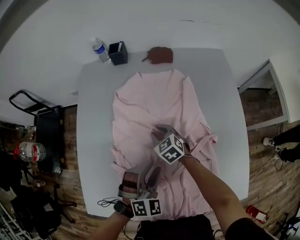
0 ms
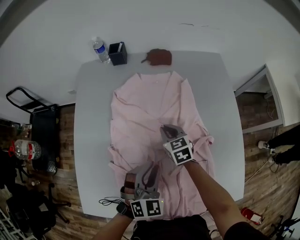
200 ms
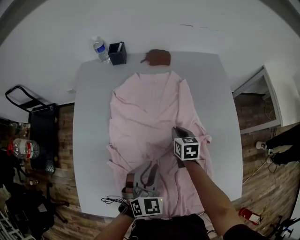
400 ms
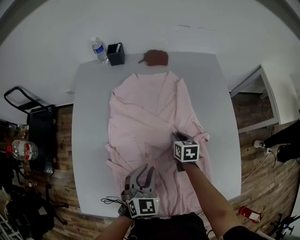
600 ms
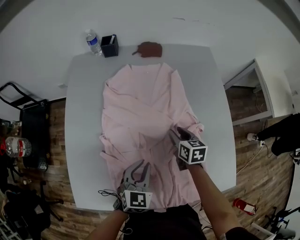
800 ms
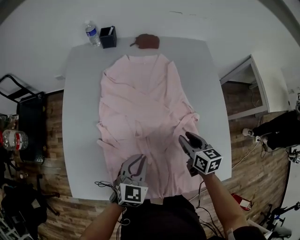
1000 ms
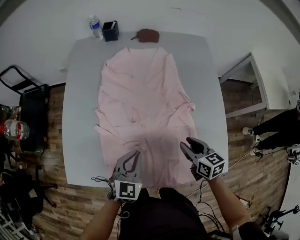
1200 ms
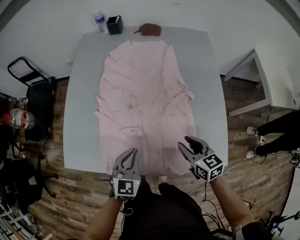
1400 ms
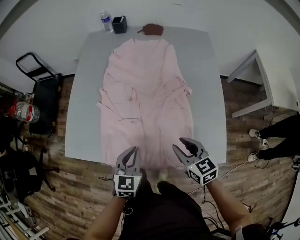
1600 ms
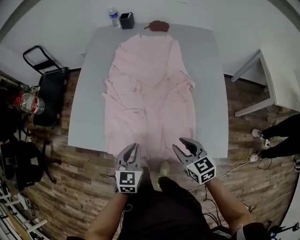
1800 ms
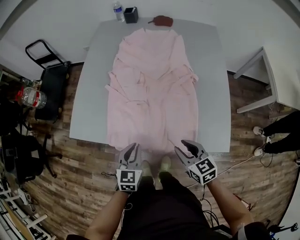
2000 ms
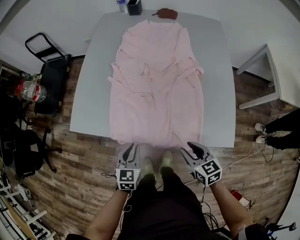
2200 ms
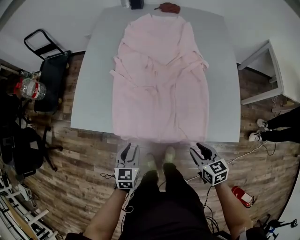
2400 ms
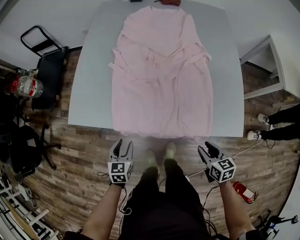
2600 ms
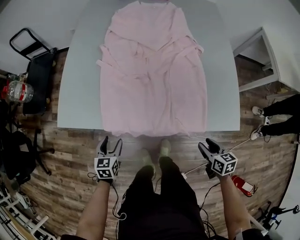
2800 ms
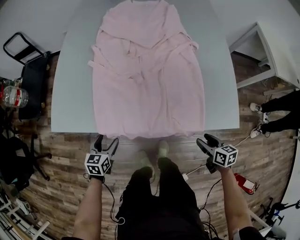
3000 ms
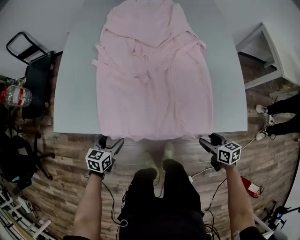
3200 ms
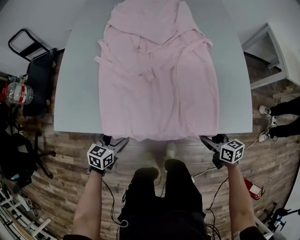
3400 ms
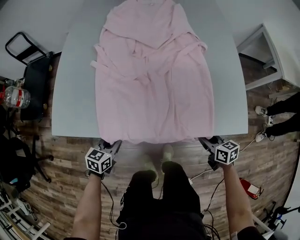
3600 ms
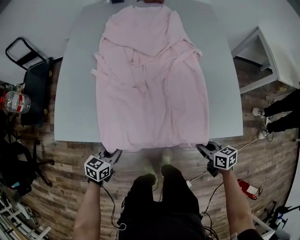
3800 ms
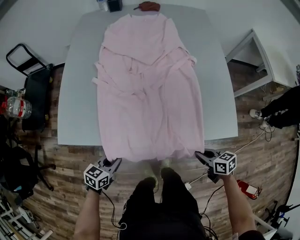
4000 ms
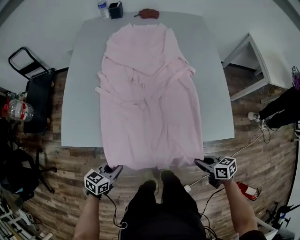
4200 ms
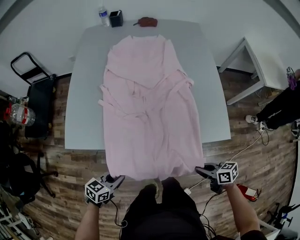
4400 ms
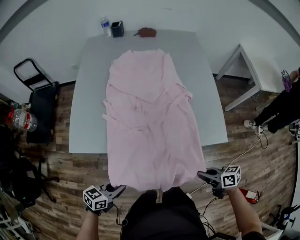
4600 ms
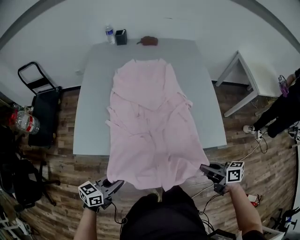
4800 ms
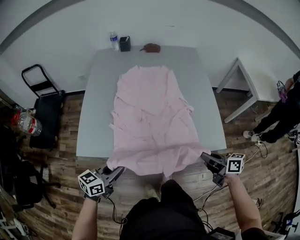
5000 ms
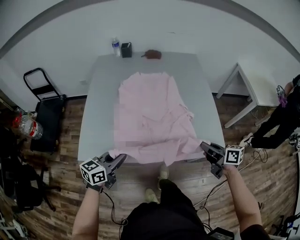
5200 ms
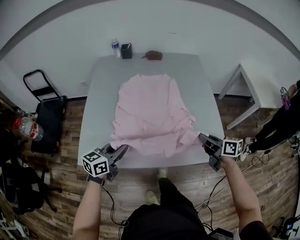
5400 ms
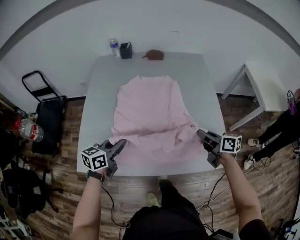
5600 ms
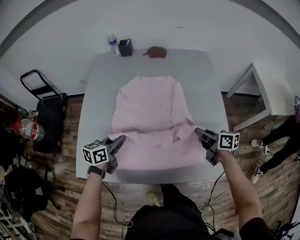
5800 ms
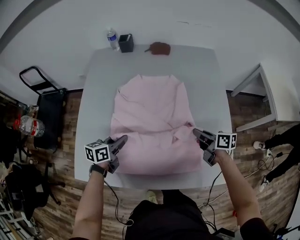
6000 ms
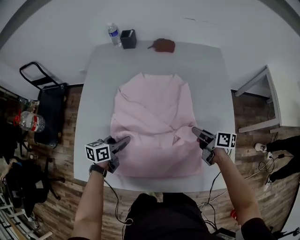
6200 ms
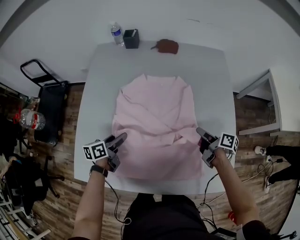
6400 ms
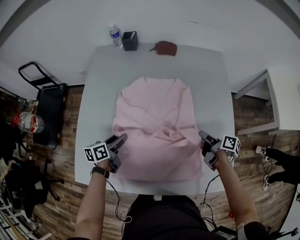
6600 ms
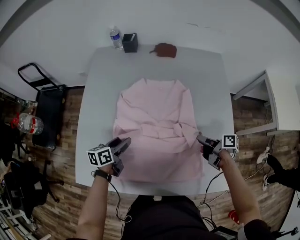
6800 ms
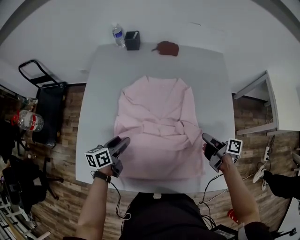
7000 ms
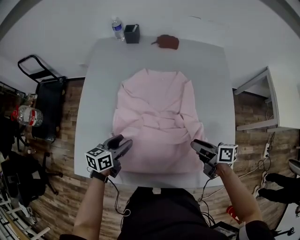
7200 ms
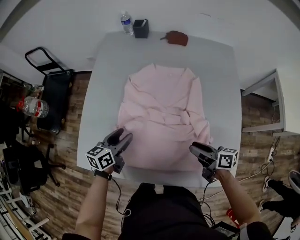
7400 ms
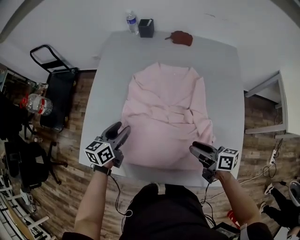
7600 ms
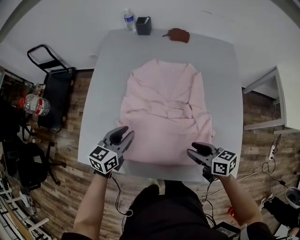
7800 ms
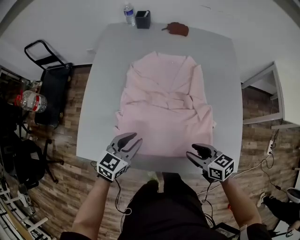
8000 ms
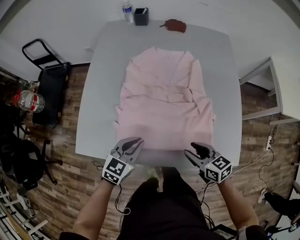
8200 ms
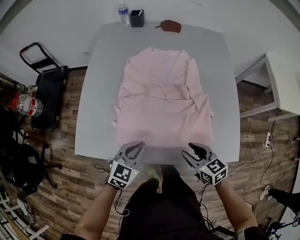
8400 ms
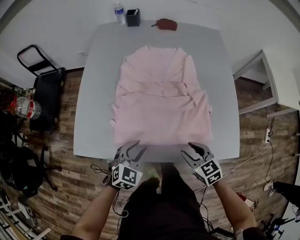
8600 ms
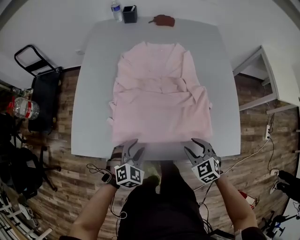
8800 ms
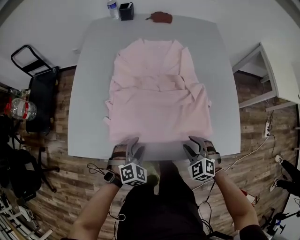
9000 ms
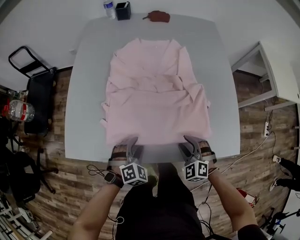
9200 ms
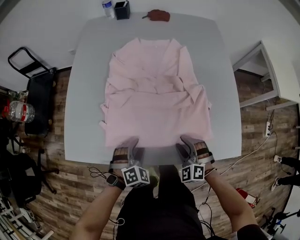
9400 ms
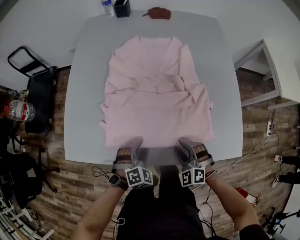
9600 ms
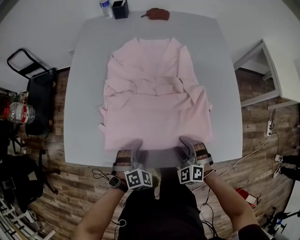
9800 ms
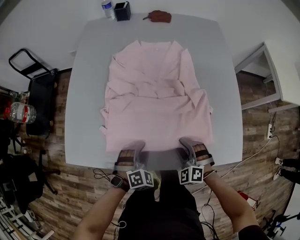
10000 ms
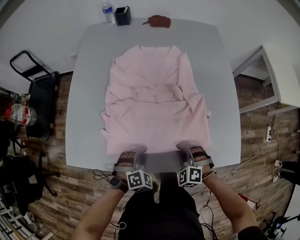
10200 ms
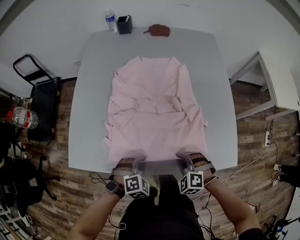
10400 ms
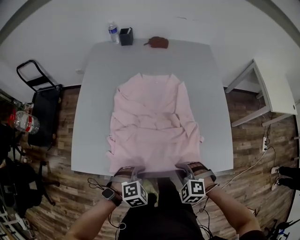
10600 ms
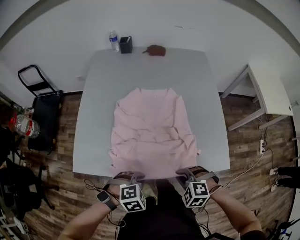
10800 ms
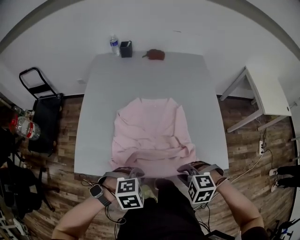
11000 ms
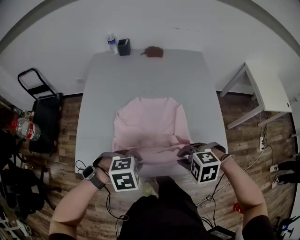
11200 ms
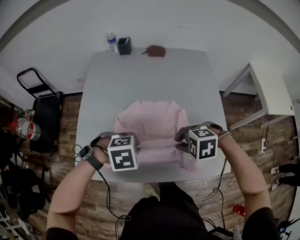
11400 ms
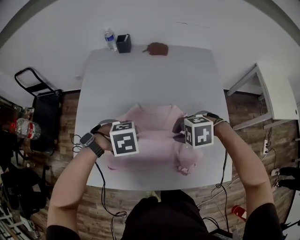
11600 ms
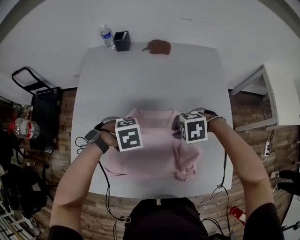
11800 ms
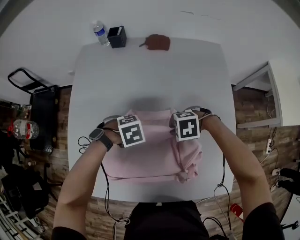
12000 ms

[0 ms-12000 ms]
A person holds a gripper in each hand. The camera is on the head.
0 ms to 1600 ms: The left gripper goes roughly 20 cm backward, rotates around the line of its fingers by approximately 50 degrees, counterclockwise from behind, and closes up, while the right gripper shifts some 35 cm backward and to the right, and closes, then opens again.
1600 ms to 3000 ms: The left gripper heads downward and to the left, covering roughly 25 cm, swivels roughly 20 degrees, and opens. The right gripper heads downward, backward and to the right, covering approximately 30 cm, and rotates roughly 30 degrees.
3000 ms to 4400 ms: The right gripper travels upward, backward and to the left by about 10 cm, rotates about 20 degrees, and closes, while the left gripper shifts approximately 15 cm upward and backward, turns by some 30 degrees, and closes.
4400 ms to 6000 ms: The left gripper ends up approximately 40 cm from where it was, and changes its angle by some 20 degrees; the right gripper moves some 40 cm.
6000 ms to 7600 ms: The left gripper goes about 5 cm to the left, and opens up. Meanwhile the right gripper goes about 10 cm to the left and backward, and opens its fingers.
7600 ms to 9000 ms: The right gripper is displaced backward and downward by approximately 15 cm, and rotates around the line of its fingers by roughly 80 degrees, counterclockwise from behind. Meanwhile the left gripper travels backward, downward and to the right by some 25 cm, rolls clockwise, seen from behind, by about 70 degrees, and closes and opens again.
9000 ms to 10400 ms: The left gripper closes its fingers. Meanwhile the right gripper closes up.
10400 ms to 12000 ms: The left gripper reaches about 15 cm upward, then returns, and rotates roughly 30 degrees. The right gripper travels upward and back again, approximately 15 cm each way, and changes its angle by roughly 40 degrees.

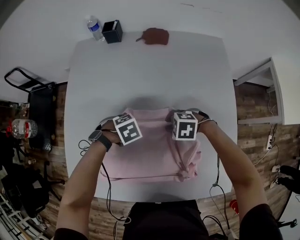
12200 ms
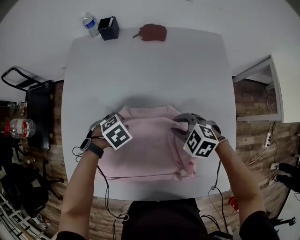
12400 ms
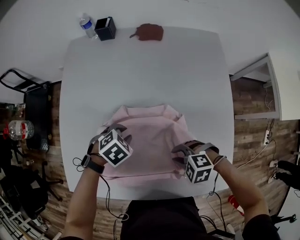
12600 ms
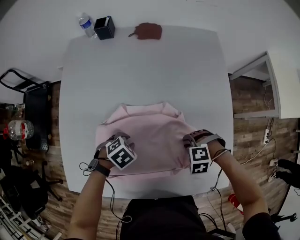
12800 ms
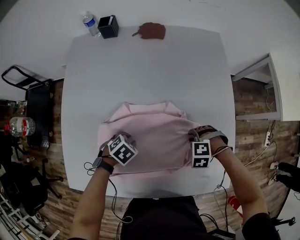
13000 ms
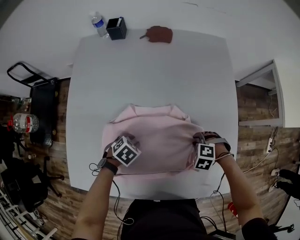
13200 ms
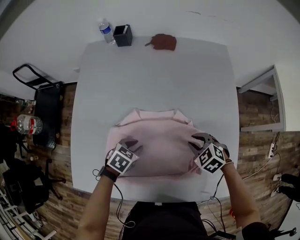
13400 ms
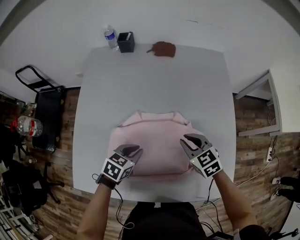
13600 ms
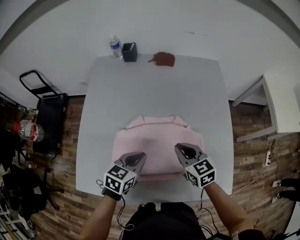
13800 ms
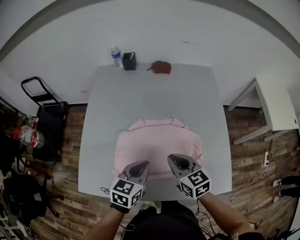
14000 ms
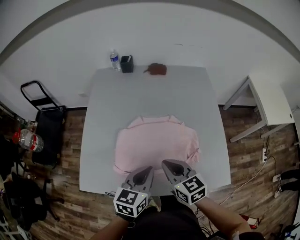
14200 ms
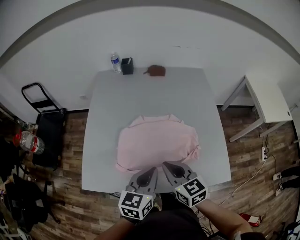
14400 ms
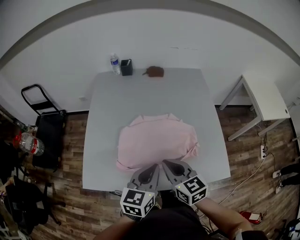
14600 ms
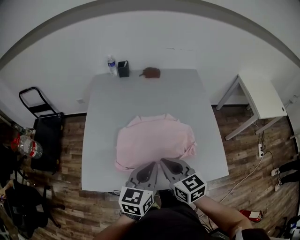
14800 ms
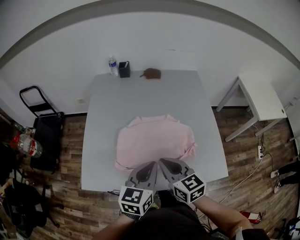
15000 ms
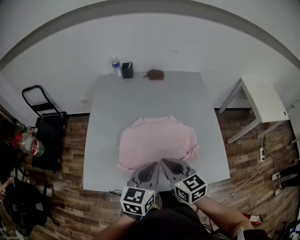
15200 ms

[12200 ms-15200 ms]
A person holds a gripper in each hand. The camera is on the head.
12200 ms to 13800 ms: The left gripper goes up and down, roughly 15 cm each way, reversing 2 times, and angles its fingers upward, by about 50 degrees. Meanwhile the right gripper goes up and down, about 15 cm each way, reversing 2 times, and points its fingers approximately 40 degrees further upward.
13800 ms to 15200 ms: The right gripper shifts some 20 cm backward, upward and to the left, while the left gripper heads upward and backward, covering some 20 cm, and rotates some 20 degrees.

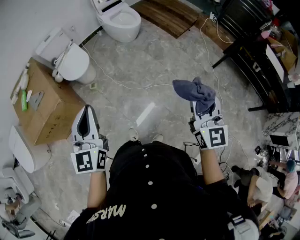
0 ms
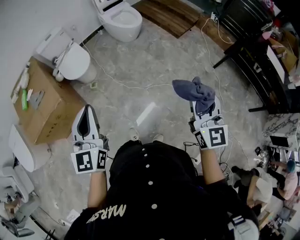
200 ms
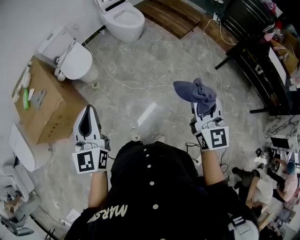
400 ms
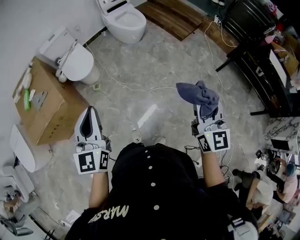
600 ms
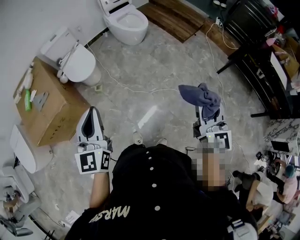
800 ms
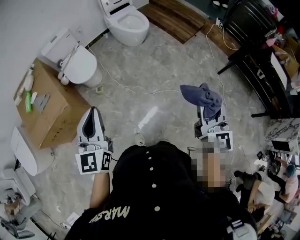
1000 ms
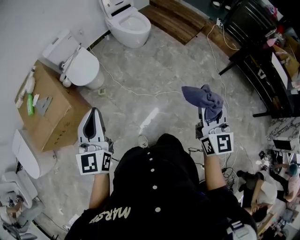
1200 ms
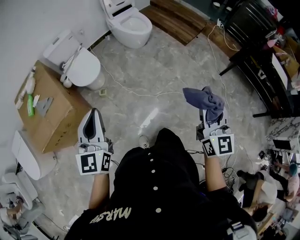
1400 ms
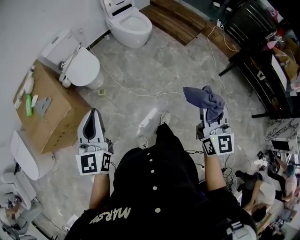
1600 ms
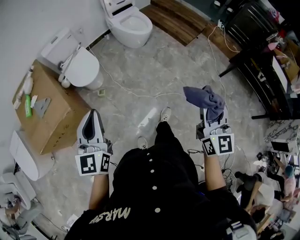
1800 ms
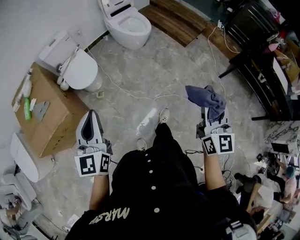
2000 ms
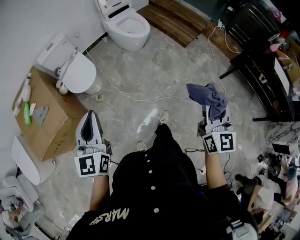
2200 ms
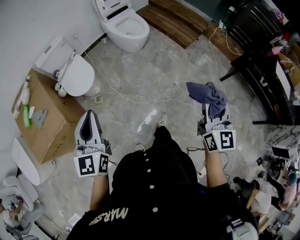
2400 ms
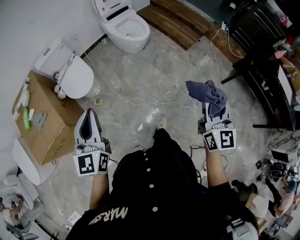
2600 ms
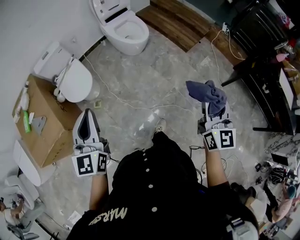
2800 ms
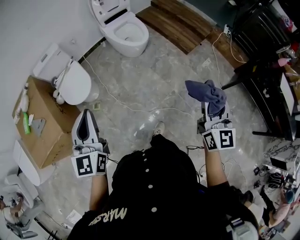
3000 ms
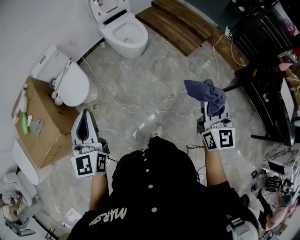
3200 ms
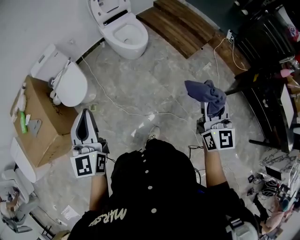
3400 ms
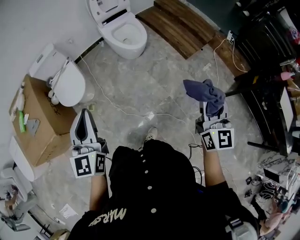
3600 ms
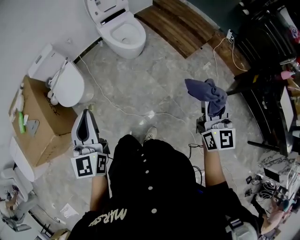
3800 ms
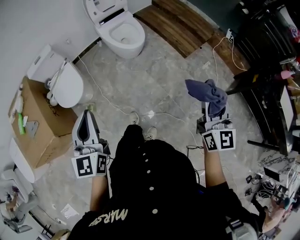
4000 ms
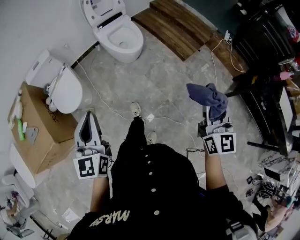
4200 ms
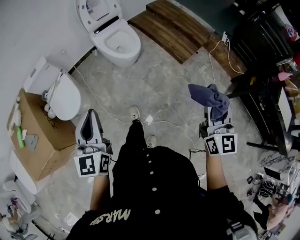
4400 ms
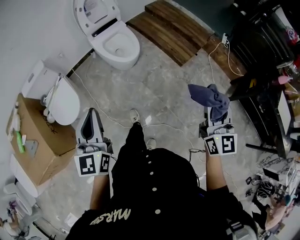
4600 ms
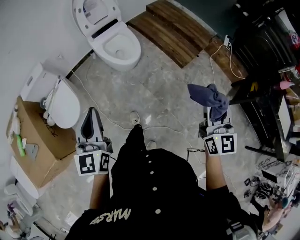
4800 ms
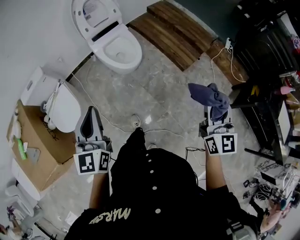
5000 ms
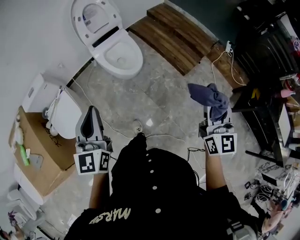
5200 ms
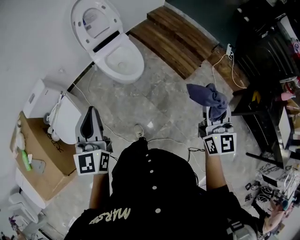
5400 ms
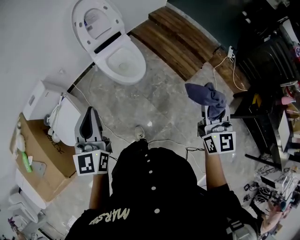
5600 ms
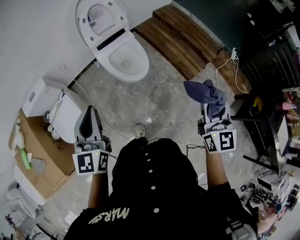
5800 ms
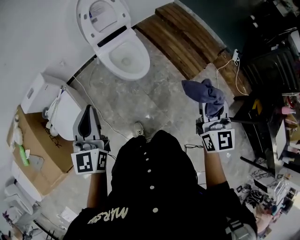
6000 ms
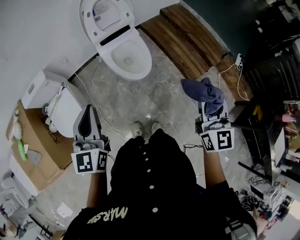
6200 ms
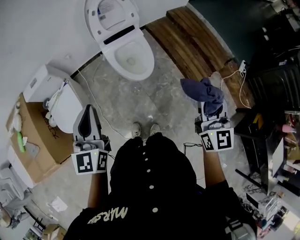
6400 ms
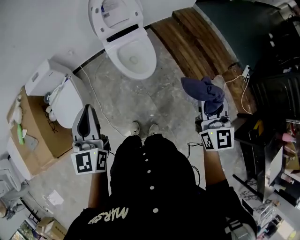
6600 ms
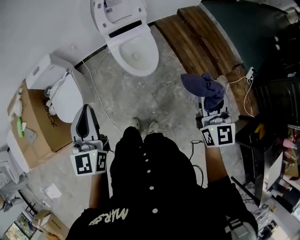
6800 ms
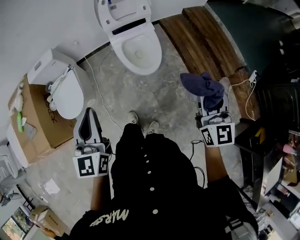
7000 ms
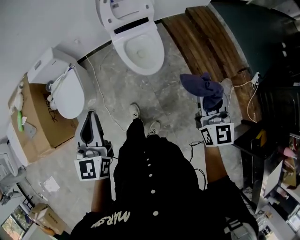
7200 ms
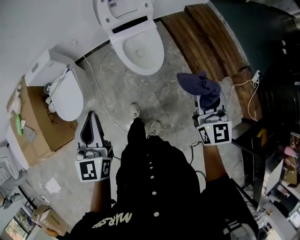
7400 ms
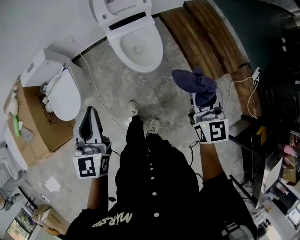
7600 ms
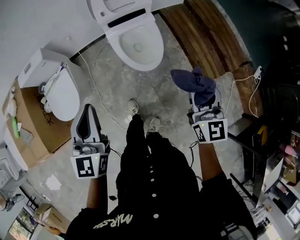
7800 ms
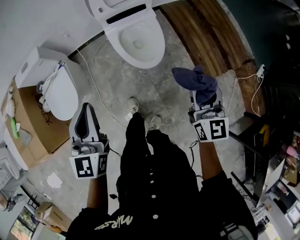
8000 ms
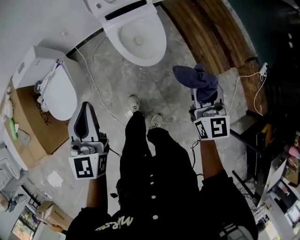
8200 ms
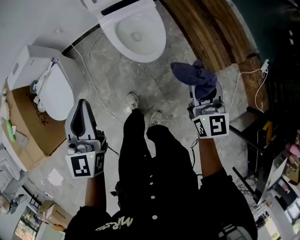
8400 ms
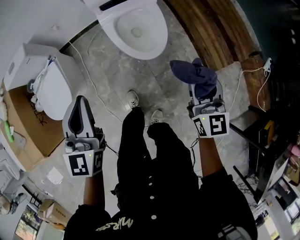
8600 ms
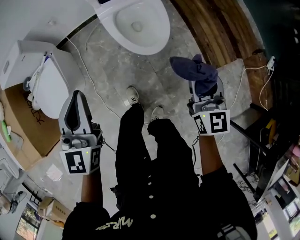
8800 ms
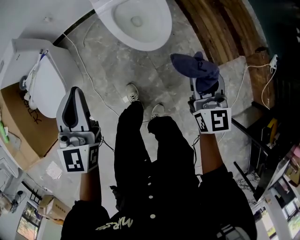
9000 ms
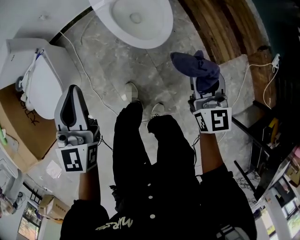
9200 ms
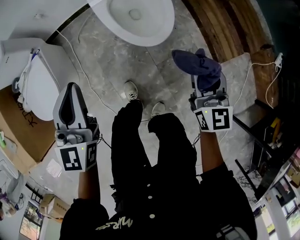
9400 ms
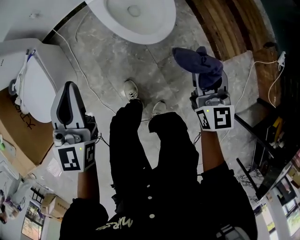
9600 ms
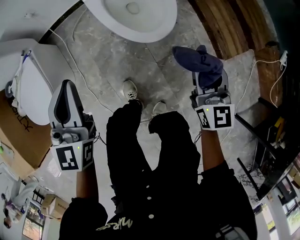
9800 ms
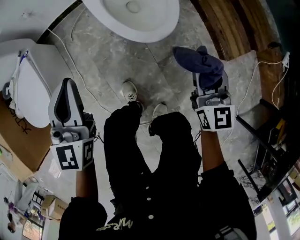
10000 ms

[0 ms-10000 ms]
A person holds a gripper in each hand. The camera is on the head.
0 ms to 1400 ms: The left gripper goes some 10 cm to the left and forward. Meanwhile the right gripper is displaced to the left by about 5 cm.
1400 ms to 2800 ms: The two grippers go some 25 cm forward and to the right.
2800 ms to 4200 ms: Both grippers travel together forward and to the right, about 15 cm.
4200 ms to 5800 ms: The two grippers go some 30 cm forward.
5800 ms to 7200 ms: The left gripper changes place by approximately 5 cm; the right gripper travels forward and downward by roughly 15 cm.
7200 ms to 8600 ms: The right gripper is displaced downward by roughly 20 cm; the left gripper travels downward and forward by roughly 20 cm.
8600 ms to 10000 ms: The grippers both shift downward by approximately 20 cm.
